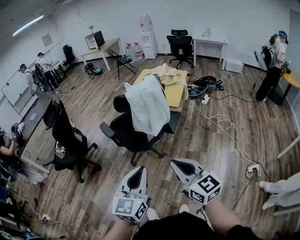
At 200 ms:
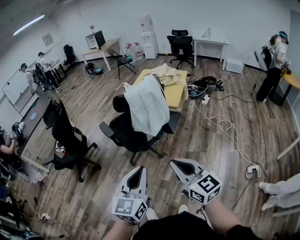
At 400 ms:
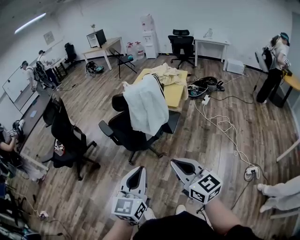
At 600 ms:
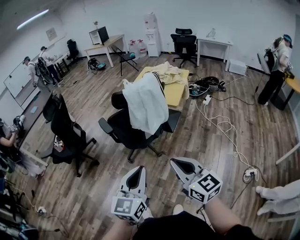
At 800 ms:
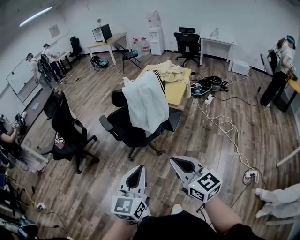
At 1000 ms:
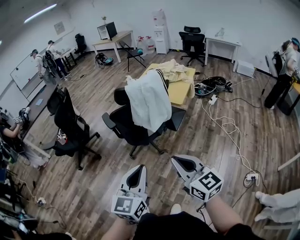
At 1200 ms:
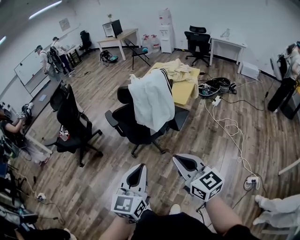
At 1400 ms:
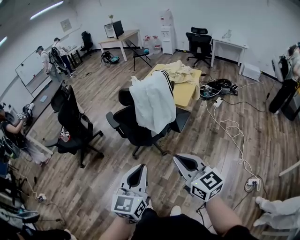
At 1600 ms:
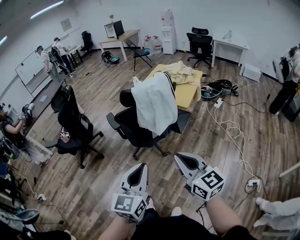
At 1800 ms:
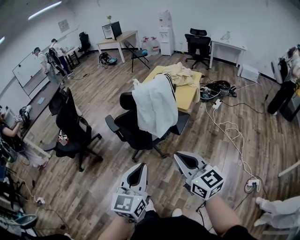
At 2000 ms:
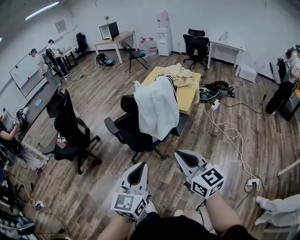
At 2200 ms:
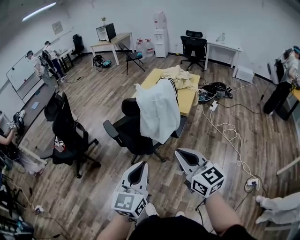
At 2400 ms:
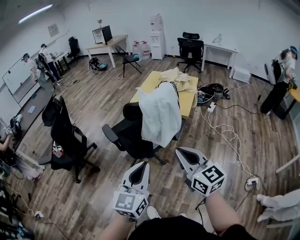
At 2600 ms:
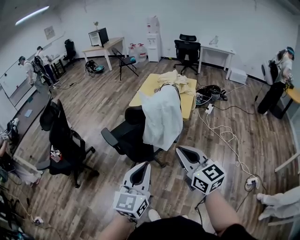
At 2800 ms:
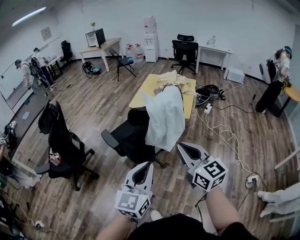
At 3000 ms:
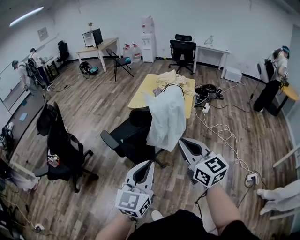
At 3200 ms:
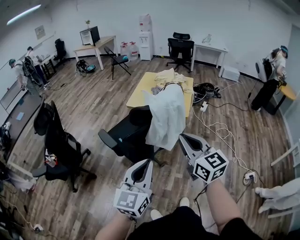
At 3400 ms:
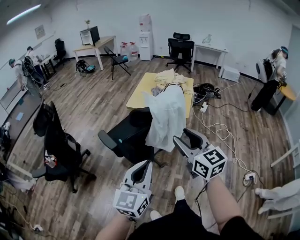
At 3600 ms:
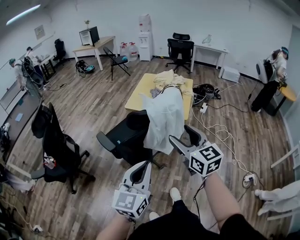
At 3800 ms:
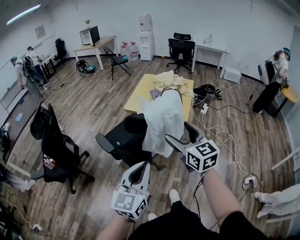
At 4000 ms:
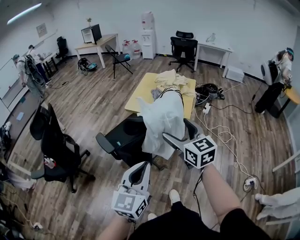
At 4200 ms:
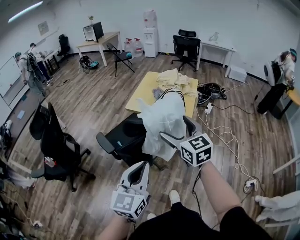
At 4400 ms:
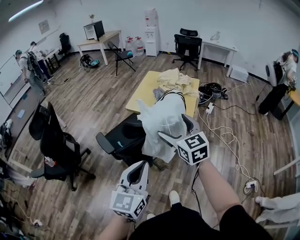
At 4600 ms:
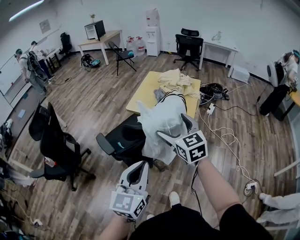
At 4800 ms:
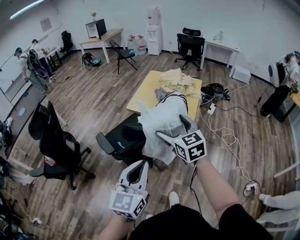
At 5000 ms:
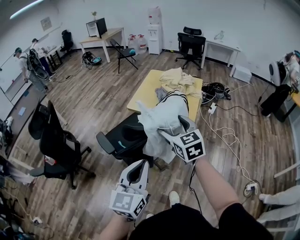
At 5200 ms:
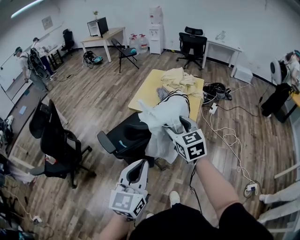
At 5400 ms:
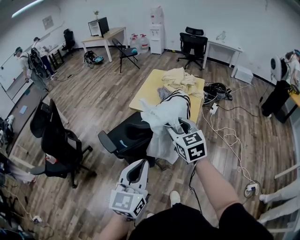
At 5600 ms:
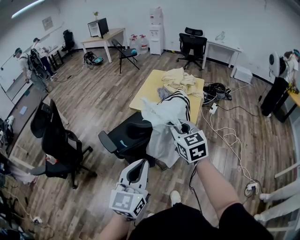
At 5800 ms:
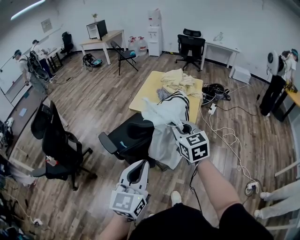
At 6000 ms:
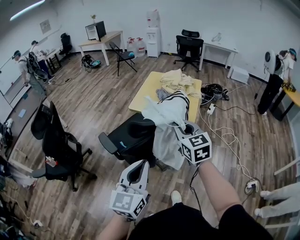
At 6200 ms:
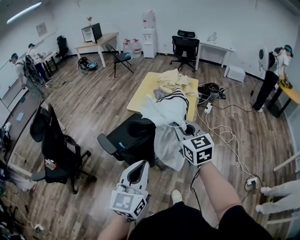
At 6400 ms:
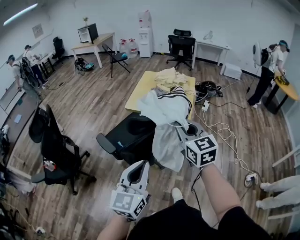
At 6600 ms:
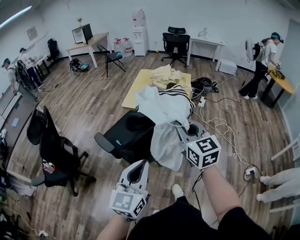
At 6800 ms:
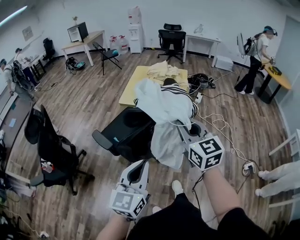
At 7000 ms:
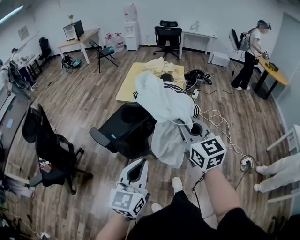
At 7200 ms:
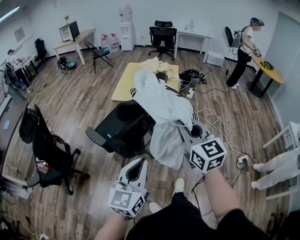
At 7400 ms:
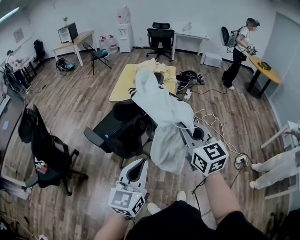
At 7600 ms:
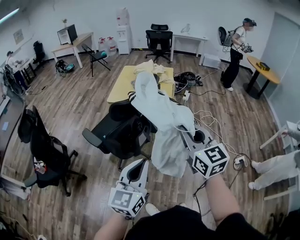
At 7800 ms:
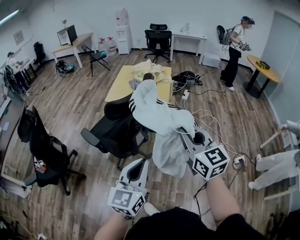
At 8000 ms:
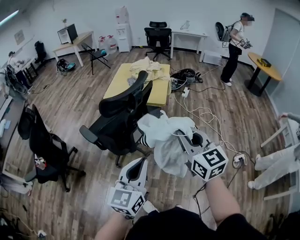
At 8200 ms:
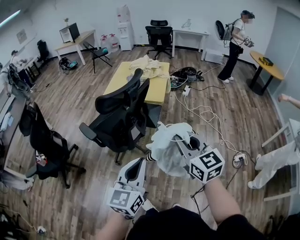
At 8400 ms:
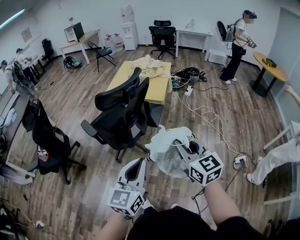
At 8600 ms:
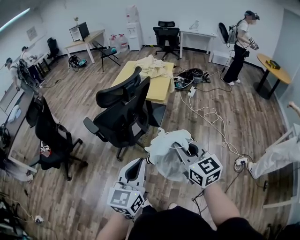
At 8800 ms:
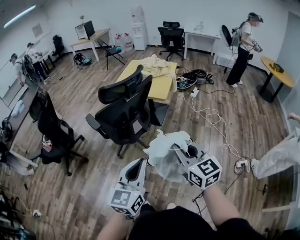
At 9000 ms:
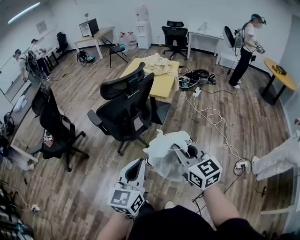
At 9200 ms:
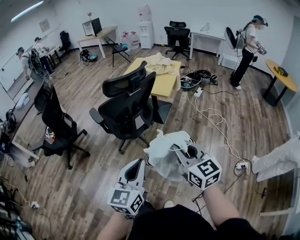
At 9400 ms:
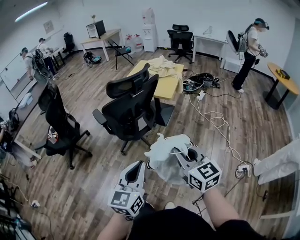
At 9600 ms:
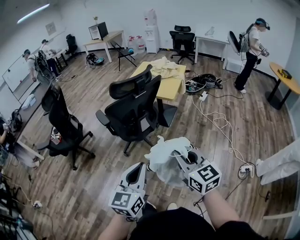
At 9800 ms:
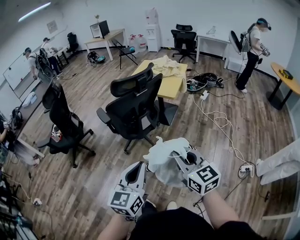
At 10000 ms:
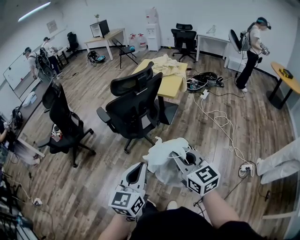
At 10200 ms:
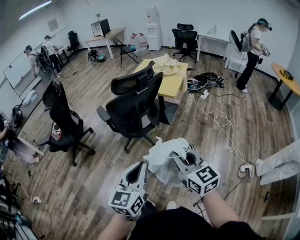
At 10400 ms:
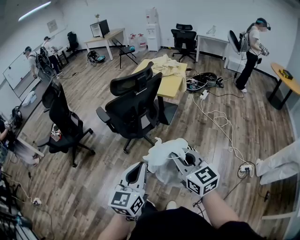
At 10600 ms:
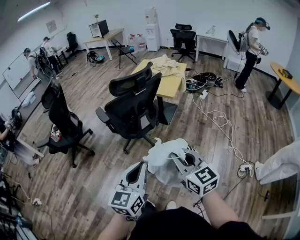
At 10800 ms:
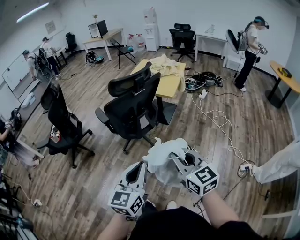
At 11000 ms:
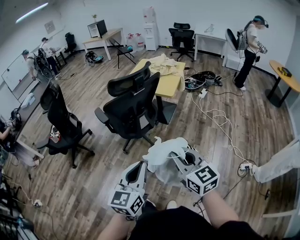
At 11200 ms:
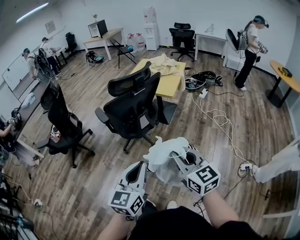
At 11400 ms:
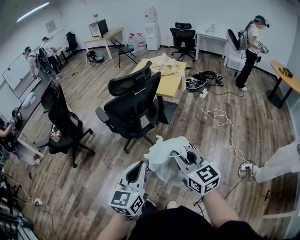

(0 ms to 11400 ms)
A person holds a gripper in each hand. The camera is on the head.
0 ms - 1400 ms: The right gripper goes some 5 cm to the right.
1400 ms - 2800 ms: The grippers both shift forward and to the left by roughly 20 cm.
2800 ms - 4200 ms: The right gripper goes approximately 20 cm forward, and opens up; the left gripper goes about 10 cm forward.
4200 ms - 5600 ms: The right gripper travels forward by approximately 5 cm, and closes up.
5600 ms - 7200 ms: The right gripper goes roughly 20 cm backward; the left gripper moves backward, about 10 cm.
7200 ms - 8600 ms: Both grippers travel together to the right and backward, about 20 cm.
8600 ms - 10000 ms: The grippers both shift backward by approximately 10 cm.
10000 ms - 11400 ms: The two grippers keep their place.

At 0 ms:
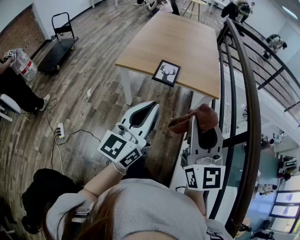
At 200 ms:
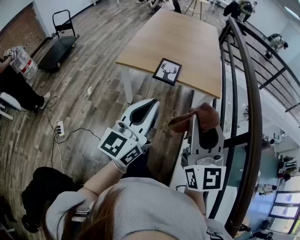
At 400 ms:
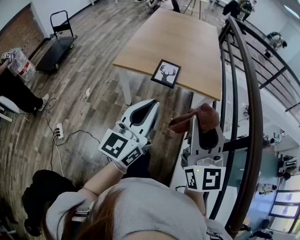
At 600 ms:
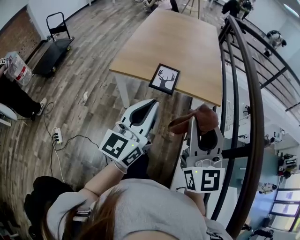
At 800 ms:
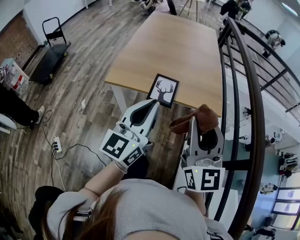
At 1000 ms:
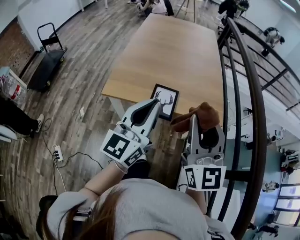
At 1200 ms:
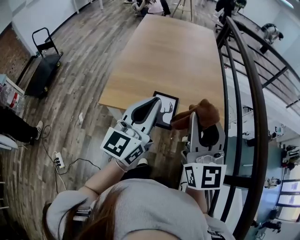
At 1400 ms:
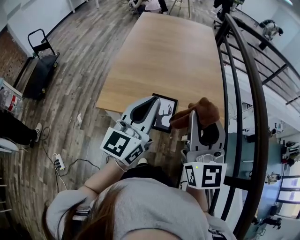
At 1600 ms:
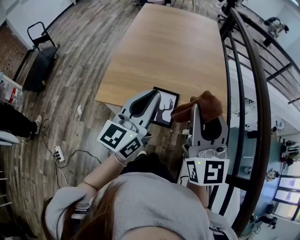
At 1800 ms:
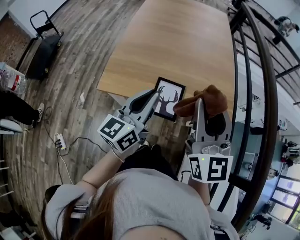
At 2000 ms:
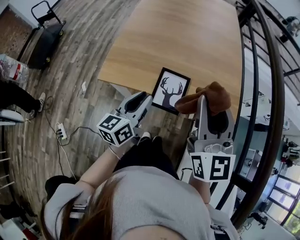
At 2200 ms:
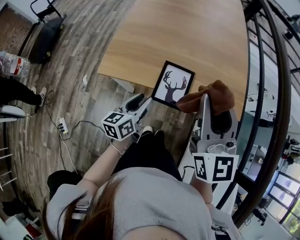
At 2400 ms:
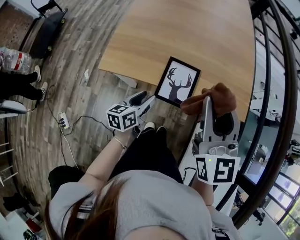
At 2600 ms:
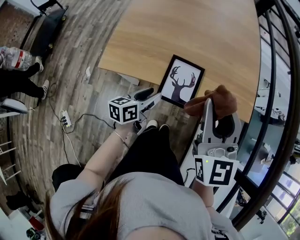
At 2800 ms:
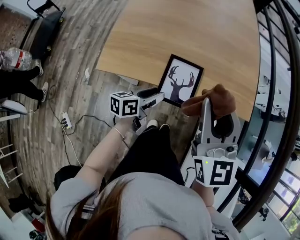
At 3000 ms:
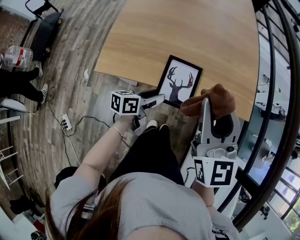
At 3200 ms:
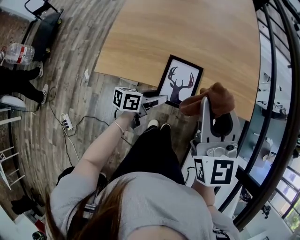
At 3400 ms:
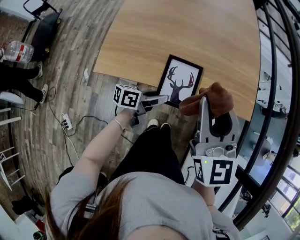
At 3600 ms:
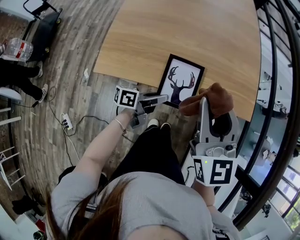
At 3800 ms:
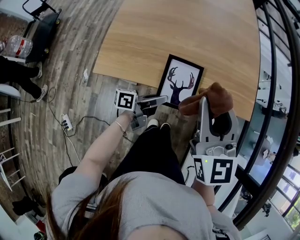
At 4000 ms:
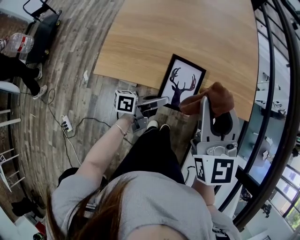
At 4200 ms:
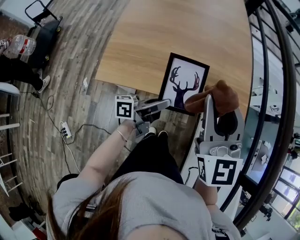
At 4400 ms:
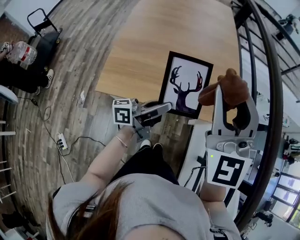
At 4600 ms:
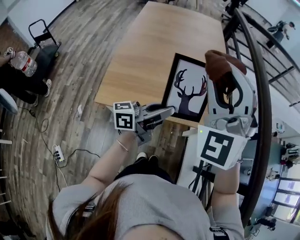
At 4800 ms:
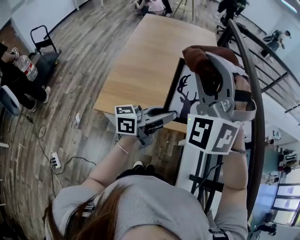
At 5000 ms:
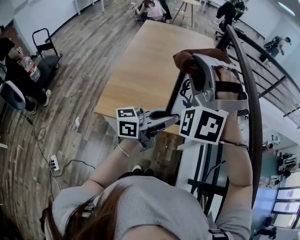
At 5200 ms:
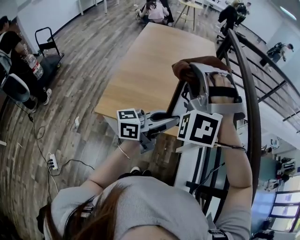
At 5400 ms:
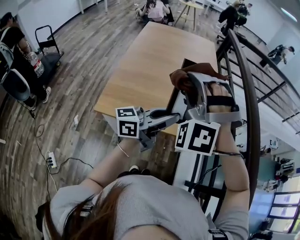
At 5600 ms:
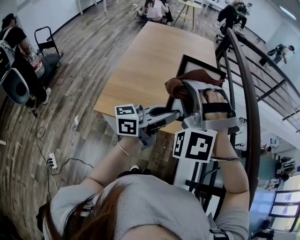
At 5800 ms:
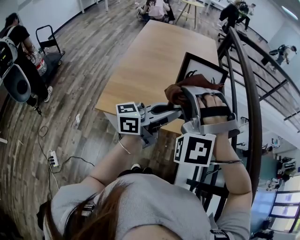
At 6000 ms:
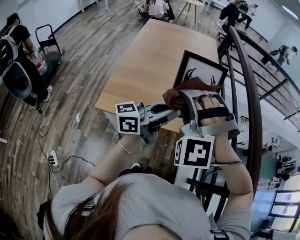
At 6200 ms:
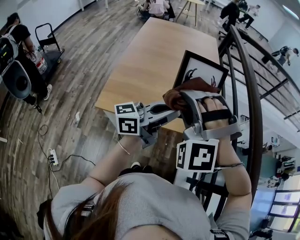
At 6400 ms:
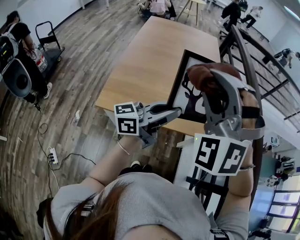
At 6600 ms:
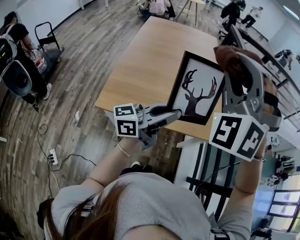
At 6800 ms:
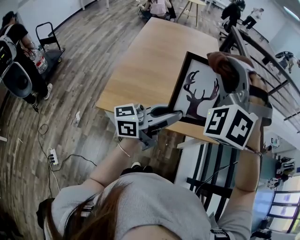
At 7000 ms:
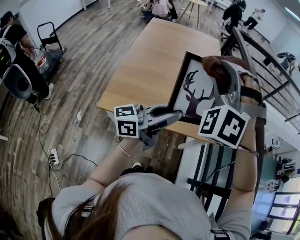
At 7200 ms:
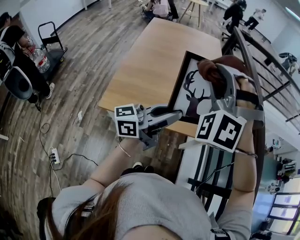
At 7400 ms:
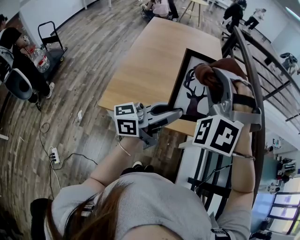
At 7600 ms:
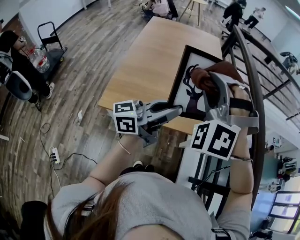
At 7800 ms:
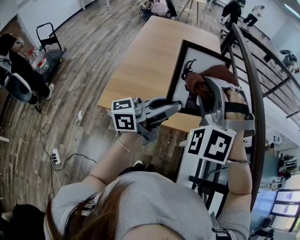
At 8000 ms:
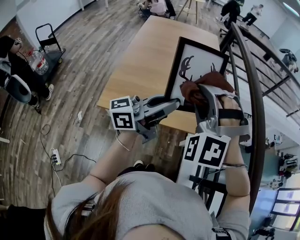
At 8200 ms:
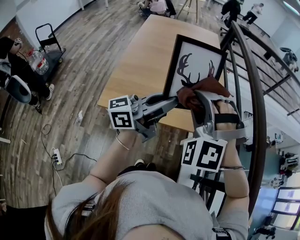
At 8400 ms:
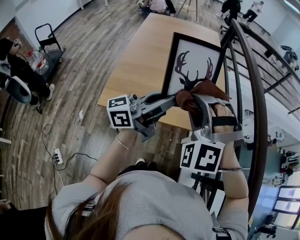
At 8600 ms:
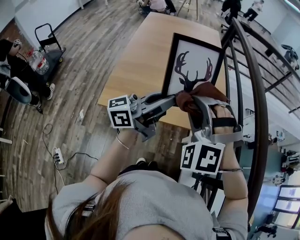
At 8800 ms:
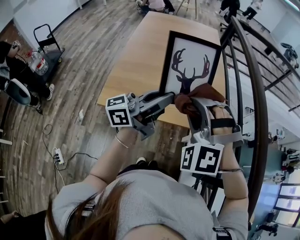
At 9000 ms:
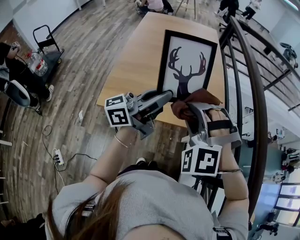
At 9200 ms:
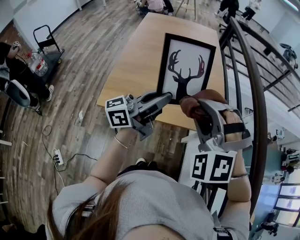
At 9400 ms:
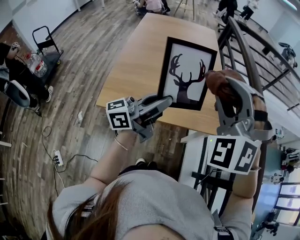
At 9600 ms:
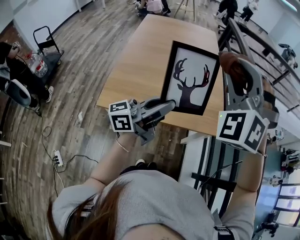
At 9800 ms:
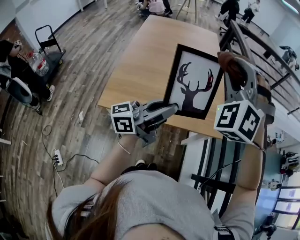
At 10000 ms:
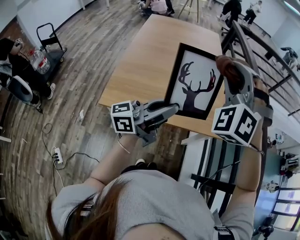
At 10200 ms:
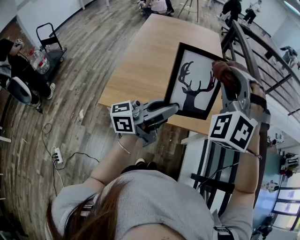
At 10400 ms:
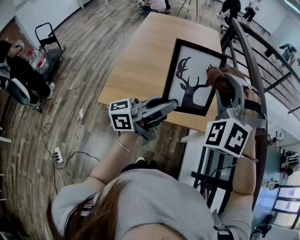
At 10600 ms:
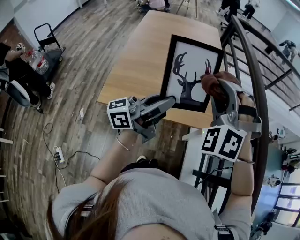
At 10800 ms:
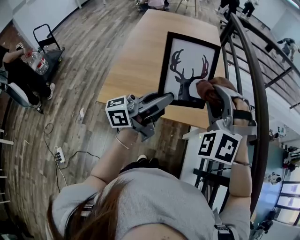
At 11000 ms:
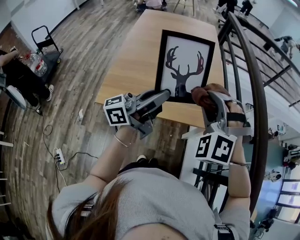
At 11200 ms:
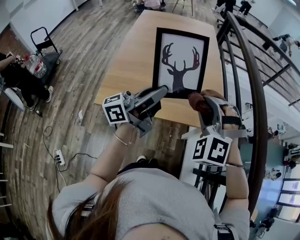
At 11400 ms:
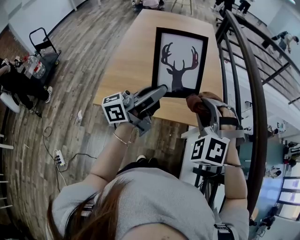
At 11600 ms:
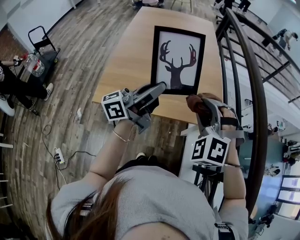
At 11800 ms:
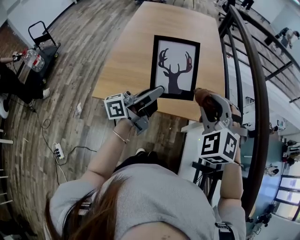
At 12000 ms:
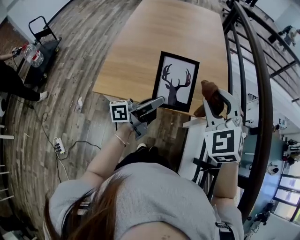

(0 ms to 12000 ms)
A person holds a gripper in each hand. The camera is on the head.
0 ms - 1600 ms: The grippers both shift forward by about 40 cm.
1600 ms - 3000 ms: The right gripper heads downward, covering approximately 15 cm, while the left gripper travels downward by roughly 35 cm, tilts its fingers some 30 degrees downward, and opens up.
3000 ms - 4400 ms: The left gripper goes upward and returns, some 10 cm each way, tilts its fingers some 40 degrees upward, and closes; the right gripper changes its angle by some 30 degrees.
4400 ms - 6000 ms: The left gripper goes some 35 cm upward, and changes its angle by some 20 degrees; the right gripper heads upward, covering roughly 15 cm, and twists about 70 degrees counterclockwise, seen from behind.
6000 ms - 7600 ms: The right gripper shifts approximately 10 cm forward and upward.
7600 ms - 9000 ms: The right gripper moves downward, backward and to the right, some 15 cm.
9000 ms - 10400 ms: The right gripper shifts some 15 cm upward and forward.
10400 ms - 12000 ms: The two grippers go roughly 15 cm downward. The left gripper changes its angle by roughly 30 degrees; the right gripper swivels some 40 degrees.
